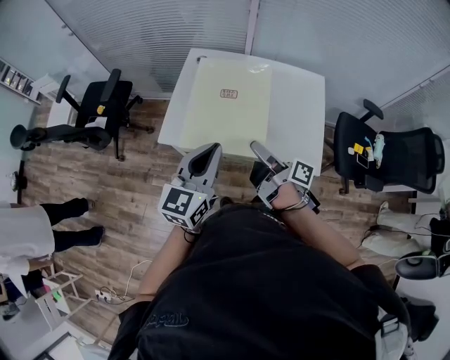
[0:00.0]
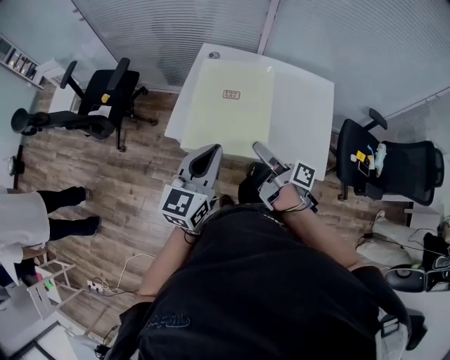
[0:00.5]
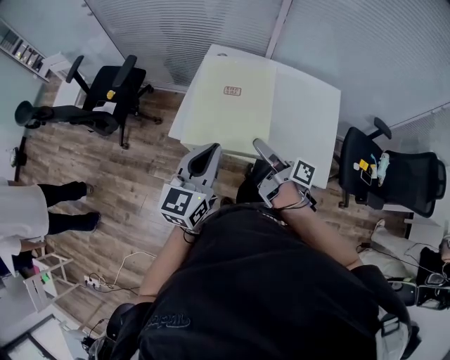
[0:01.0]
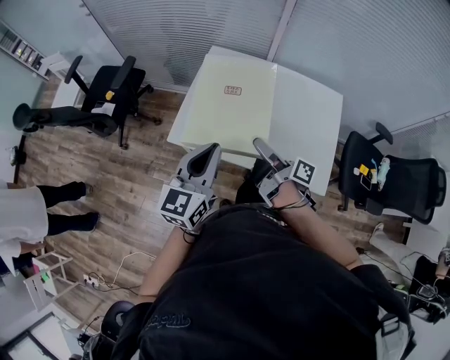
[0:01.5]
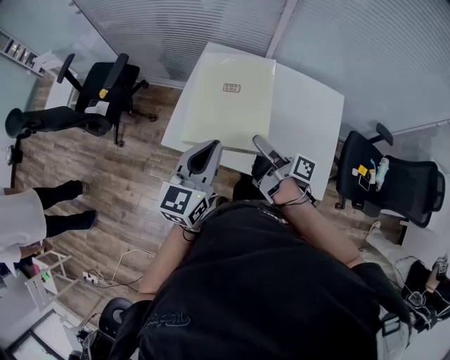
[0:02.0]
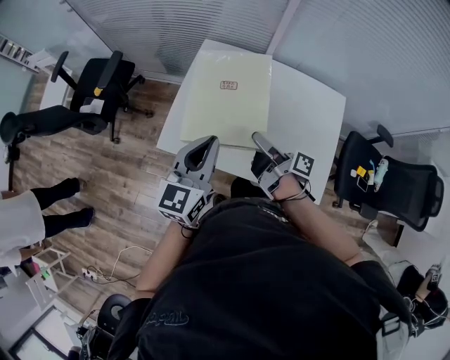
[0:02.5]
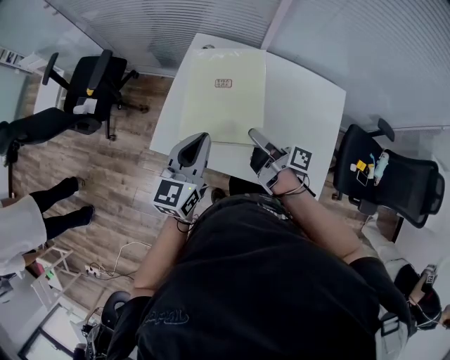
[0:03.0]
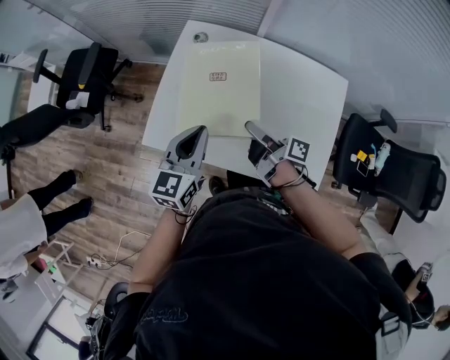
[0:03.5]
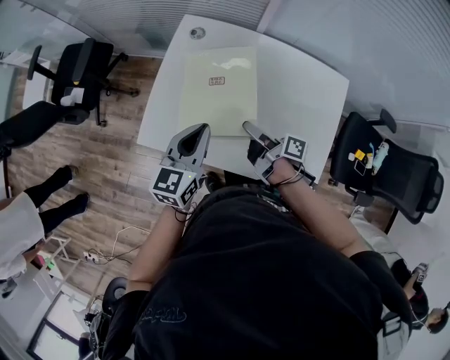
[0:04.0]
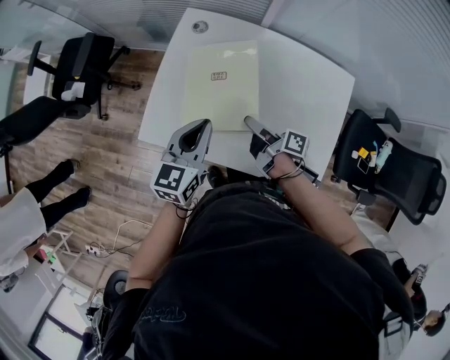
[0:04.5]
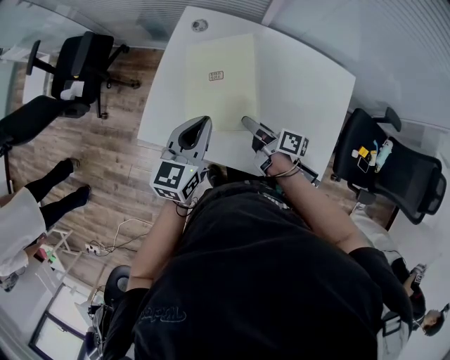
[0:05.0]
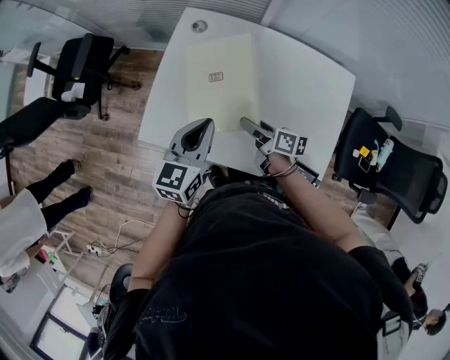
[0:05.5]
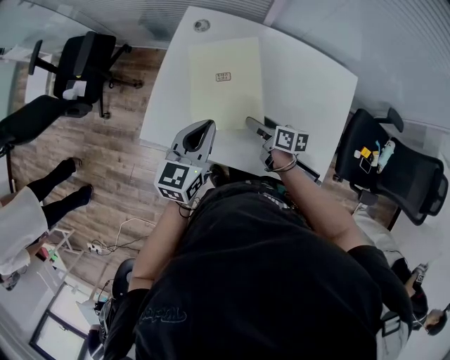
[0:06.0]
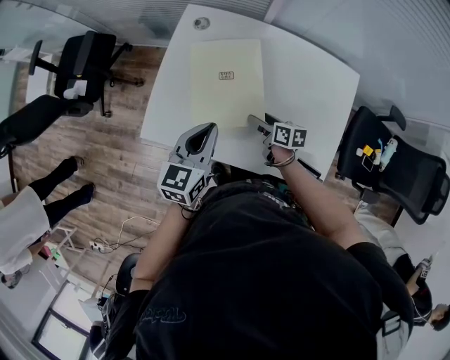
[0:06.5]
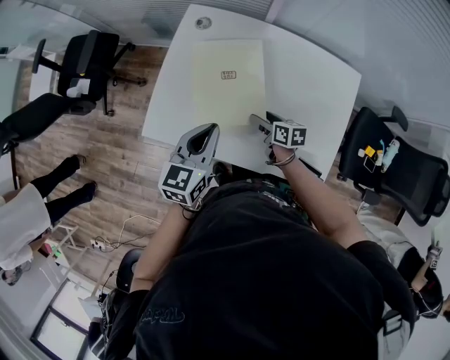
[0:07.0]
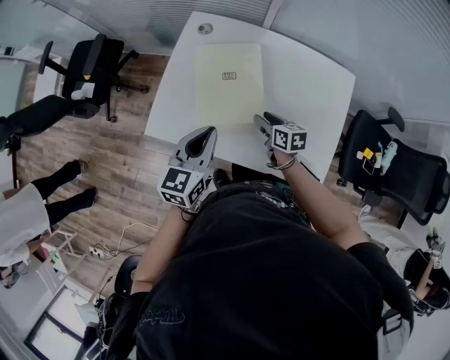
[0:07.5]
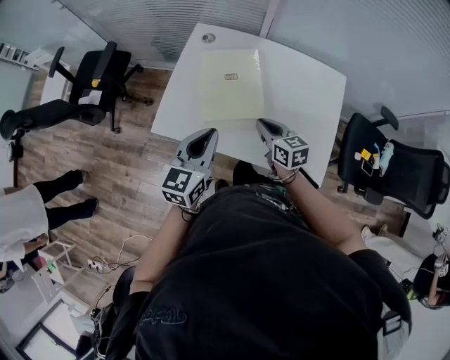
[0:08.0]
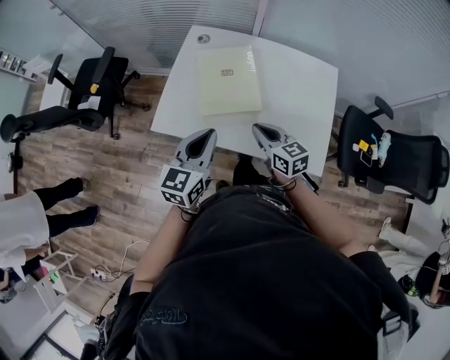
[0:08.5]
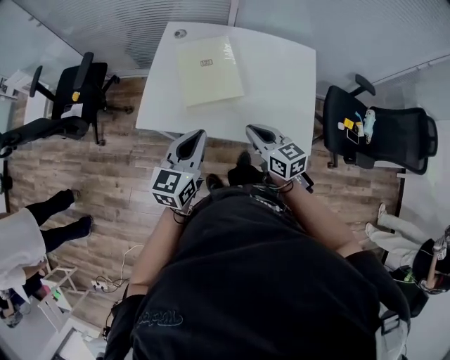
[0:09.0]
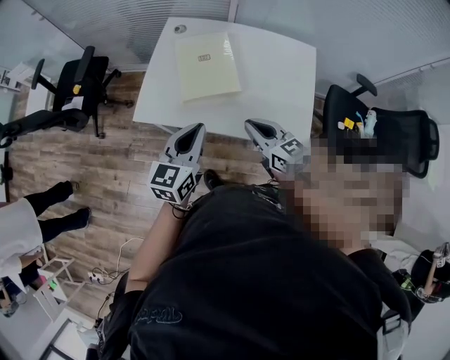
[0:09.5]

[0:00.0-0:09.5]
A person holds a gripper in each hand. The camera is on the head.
0:00.0 to 0:02.0: The two grippers go approximately 10 cm forward.
0:02.0 to 0:04.0: The grippers both shift downward, forward and to the right by roughly 15 cm.
0:04.0 to 0:05.5: The right gripper rotates some 20 degrees.
0:05.5 to 0:07.5: The right gripper changes its angle by approximately 30 degrees.
0:07.5 to 0:09.5: The left gripper is displaced backward by about 15 cm, while the right gripper moves backward and upward, approximately 25 cm, turns by approximately 30 degrees, and closes up.

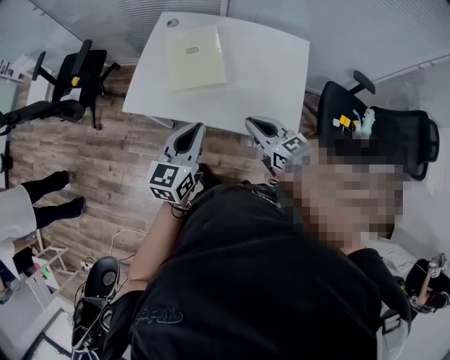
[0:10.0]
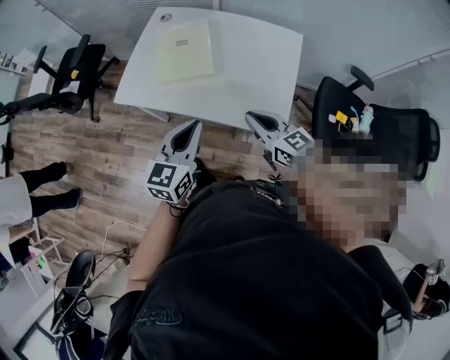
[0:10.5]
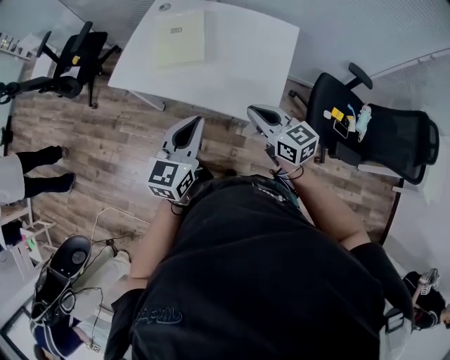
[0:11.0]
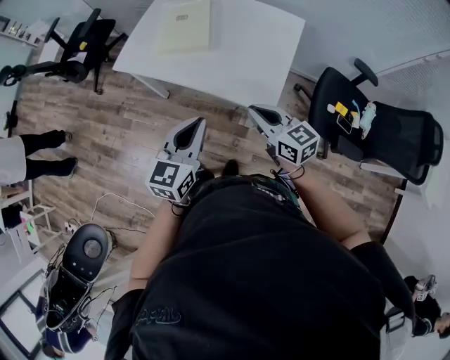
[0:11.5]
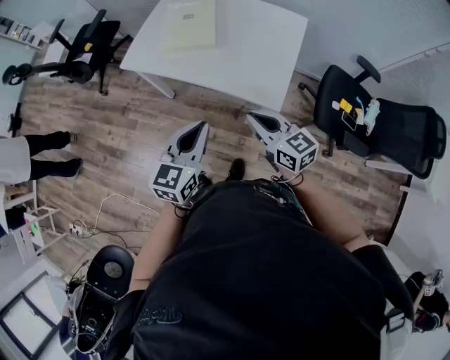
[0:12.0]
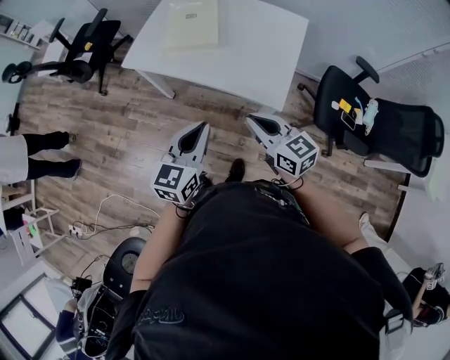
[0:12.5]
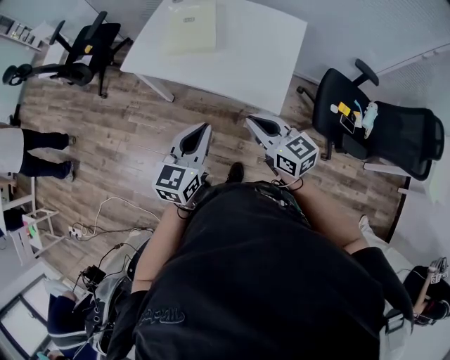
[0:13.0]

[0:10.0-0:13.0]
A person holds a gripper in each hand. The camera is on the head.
0:10.0 to 0:11.5: The two grippers go roughly 20 cm backward and to the right.
0:11.5 to 0:13.0: The right gripper shifts by roughly 5 cm.

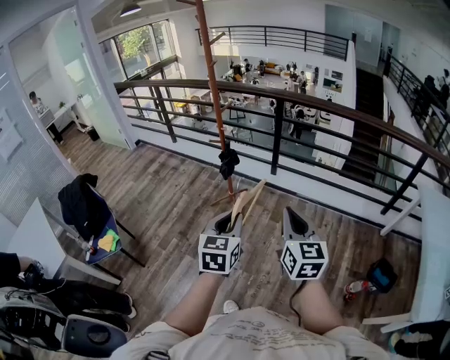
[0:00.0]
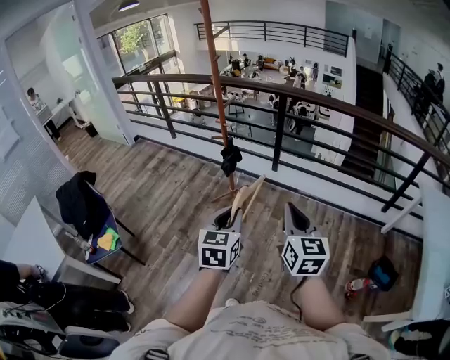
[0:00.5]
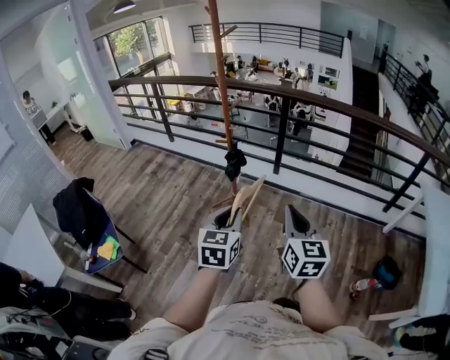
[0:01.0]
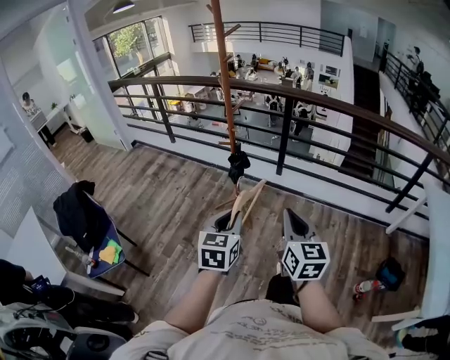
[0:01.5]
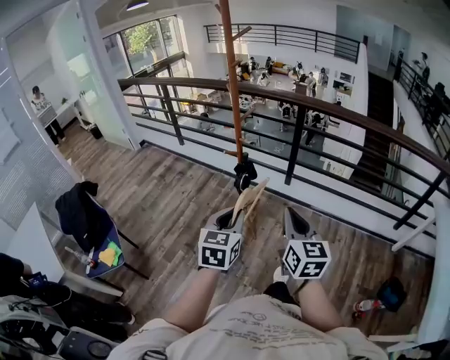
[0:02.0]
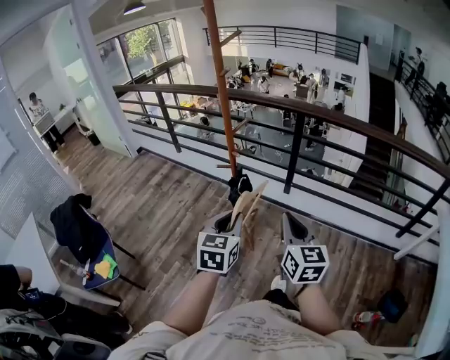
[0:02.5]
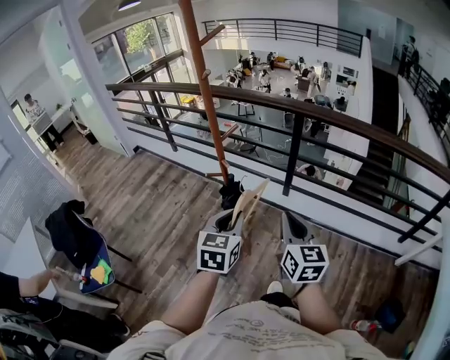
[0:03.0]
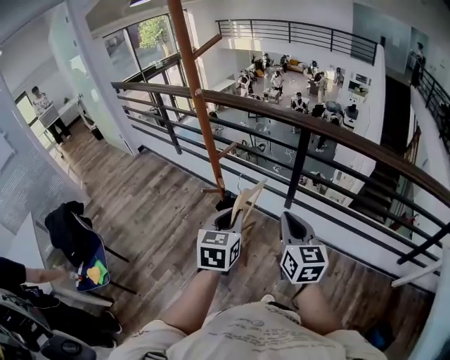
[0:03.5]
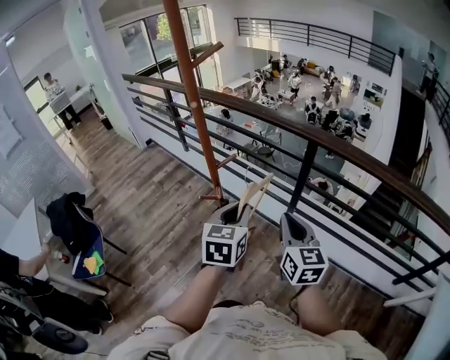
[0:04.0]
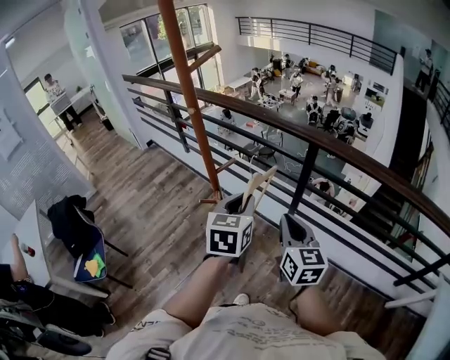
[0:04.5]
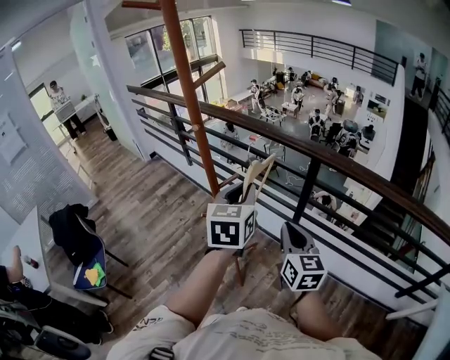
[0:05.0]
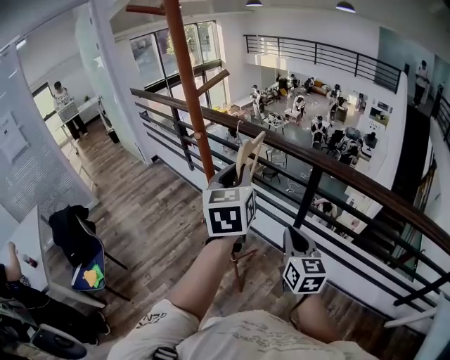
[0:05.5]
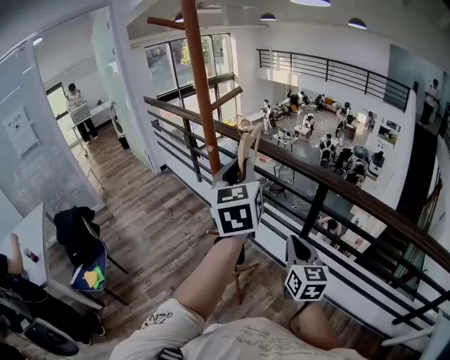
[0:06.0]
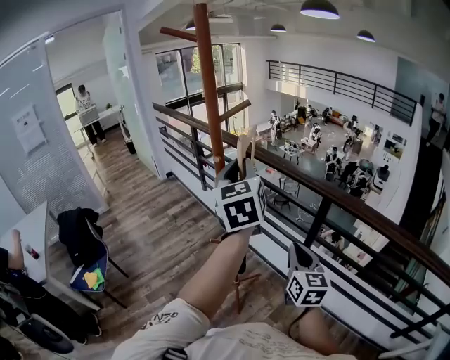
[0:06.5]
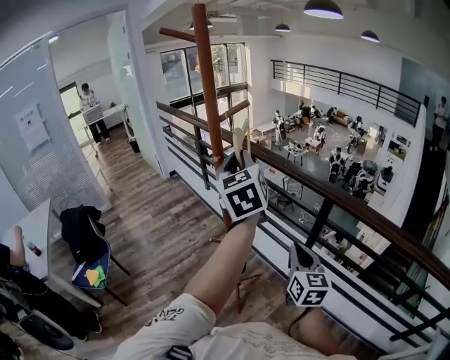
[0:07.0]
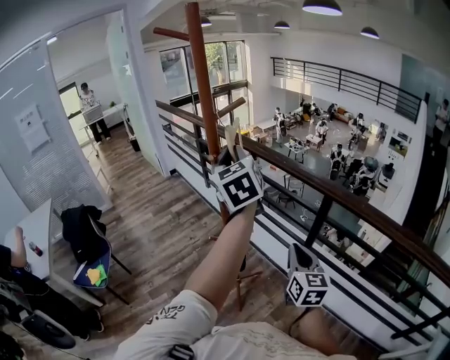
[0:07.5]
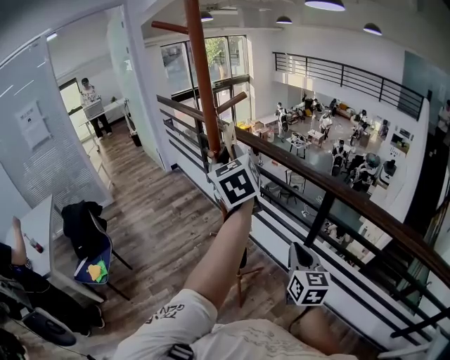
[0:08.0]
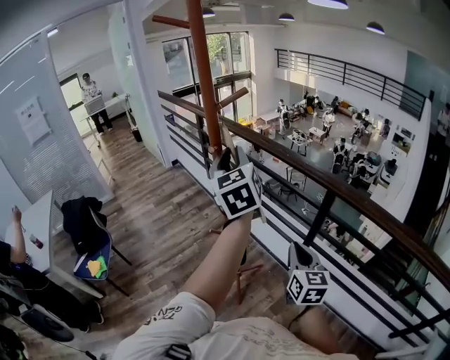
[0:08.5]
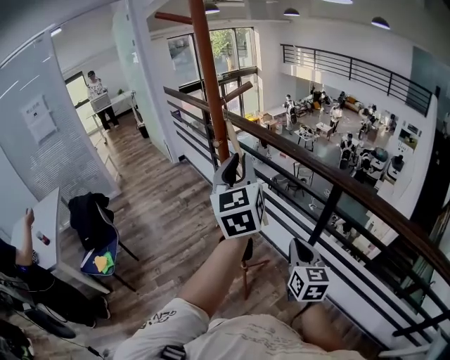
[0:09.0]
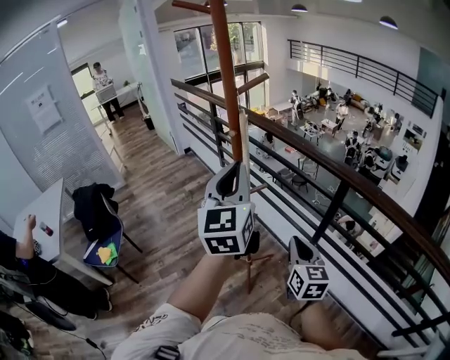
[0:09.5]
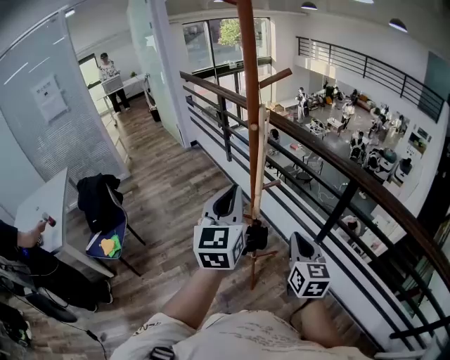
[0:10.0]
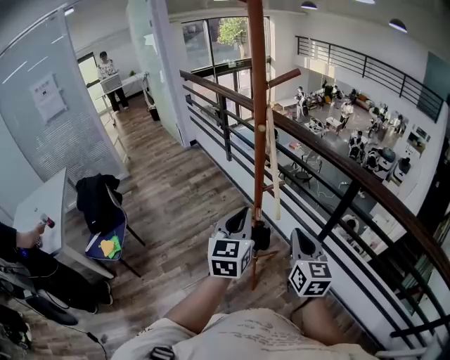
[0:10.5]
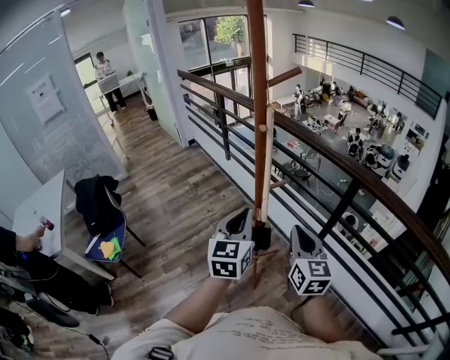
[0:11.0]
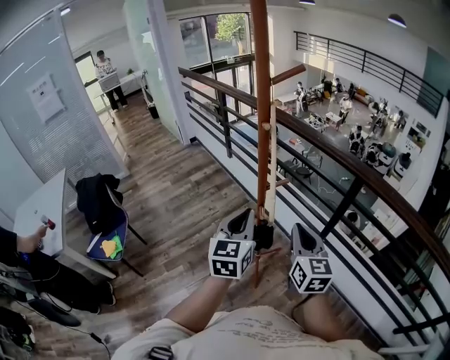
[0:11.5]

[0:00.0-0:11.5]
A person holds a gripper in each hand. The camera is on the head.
0:00.0 to 0:02.0: The grippers both shift forward and to the left by approximately 20 cm.
0:02.0 to 0:04.0: The right gripper travels forward by roughly 35 cm; the left gripper heads forward and to the right, covering some 40 cm.
0:04.0 to 0:06.0: The left gripper goes roughly 25 cm upward and forward, and rotates some 30 degrees; the right gripper travels forward by approximately 5 cm.
0:06.0 to 0:07.5: The left gripper moves forward, about 5 cm.
0:07.5 to 0:09.5: The right gripper changes place by approximately 5 cm. Meanwhile the left gripper moves backward, some 10 cm, and swivels some 20 degrees.
0:09.5 to 0:11.5: The left gripper is displaced downward by roughly 20 cm, while the right gripper travels to the left by approximately 5 cm.

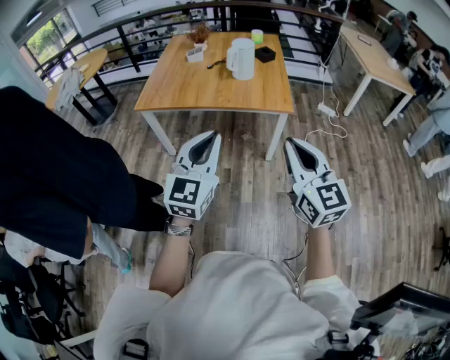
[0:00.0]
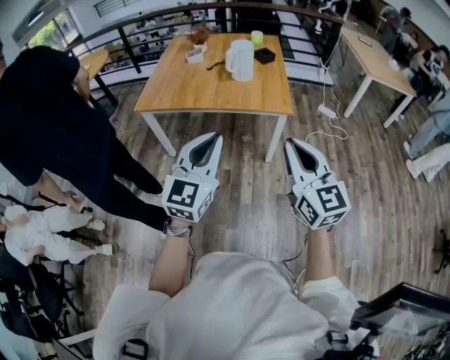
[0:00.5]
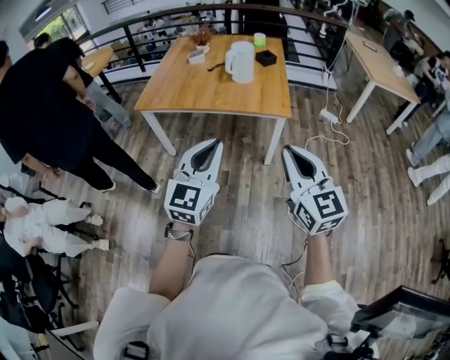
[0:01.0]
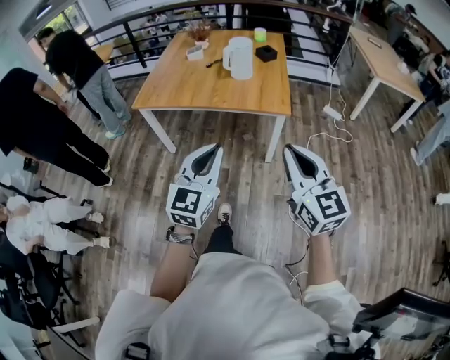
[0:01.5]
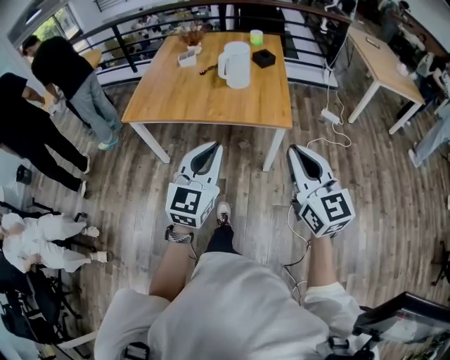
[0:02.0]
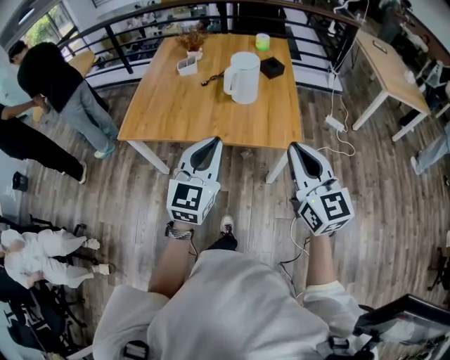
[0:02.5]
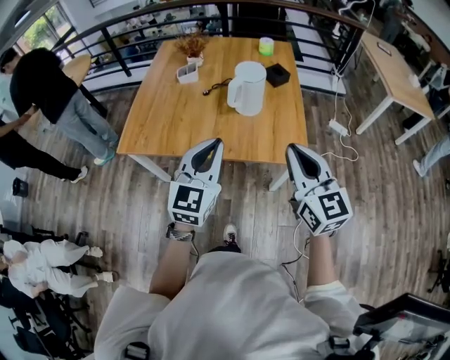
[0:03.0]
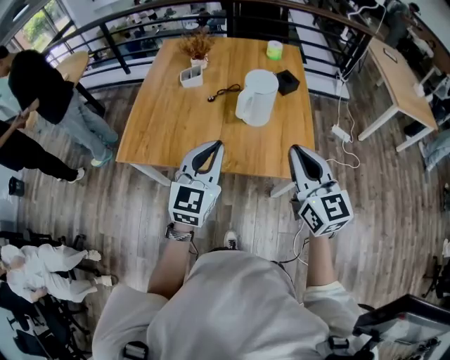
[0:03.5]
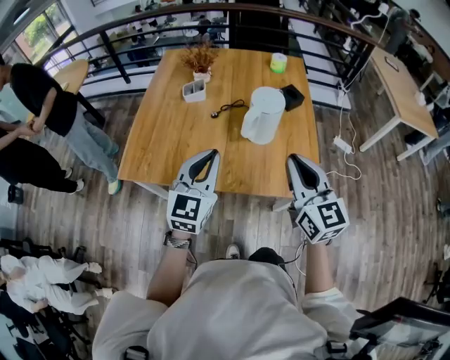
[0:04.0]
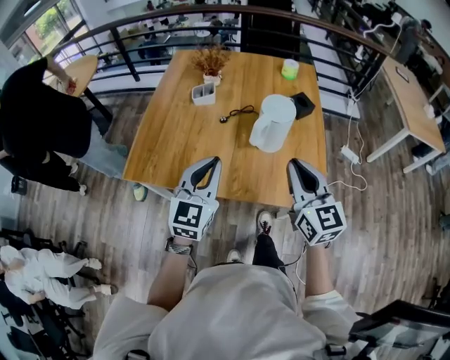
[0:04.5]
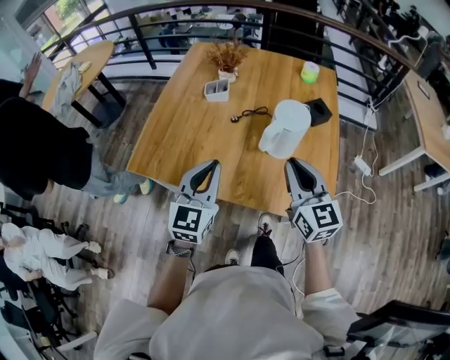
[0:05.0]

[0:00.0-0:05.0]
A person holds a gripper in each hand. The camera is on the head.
0:00.0 to 0:02.5: Both grippers move forward, some 30 cm.
0:02.5 to 0:05.0: The left gripper is displaced forward and to the left by about 30 cm. Meanwhile the right gripper goes some 30 cm forward.
